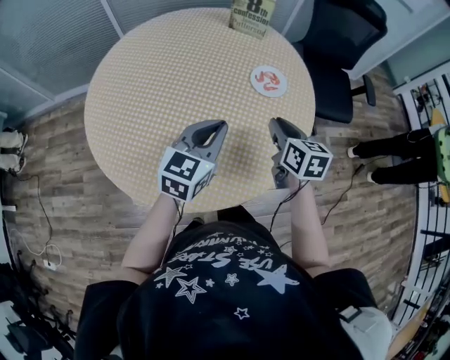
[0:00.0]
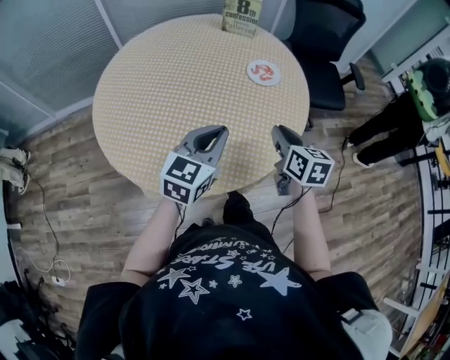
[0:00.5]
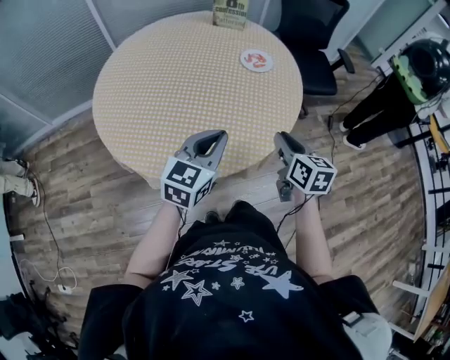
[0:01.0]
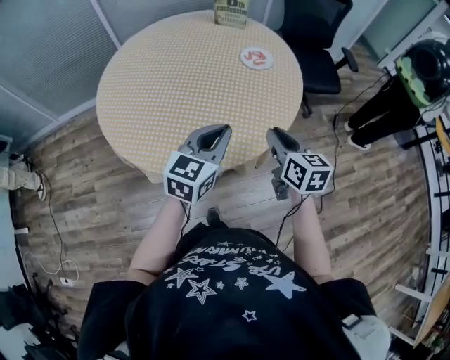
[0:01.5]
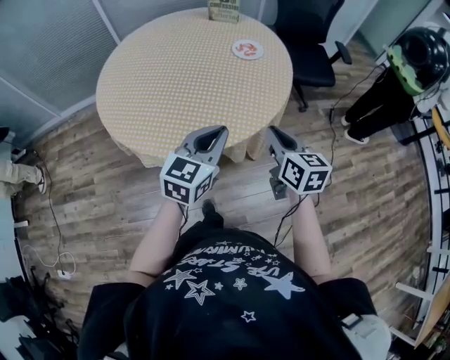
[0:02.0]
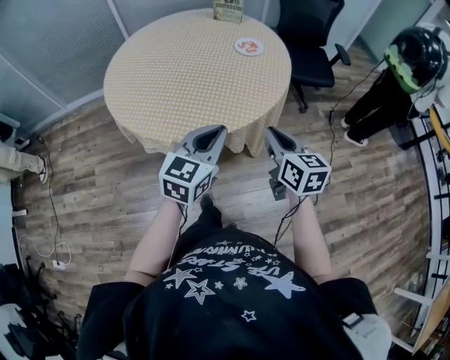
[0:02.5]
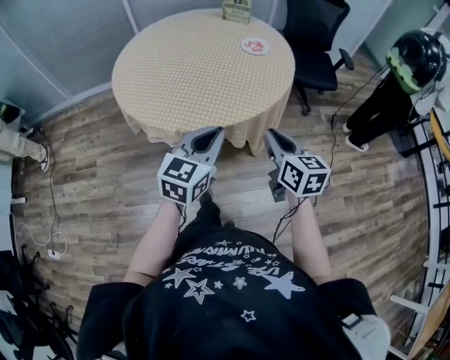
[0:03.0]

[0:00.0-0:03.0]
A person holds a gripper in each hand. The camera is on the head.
0:00.0 to 0:01.5: The grippers both shift backward by about 20 cm.
0:01.5 to 0:03.0: The two grippers go some 20 cm backward.

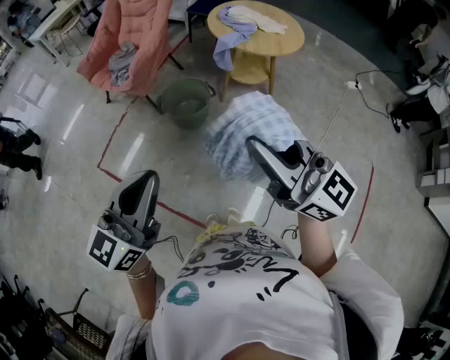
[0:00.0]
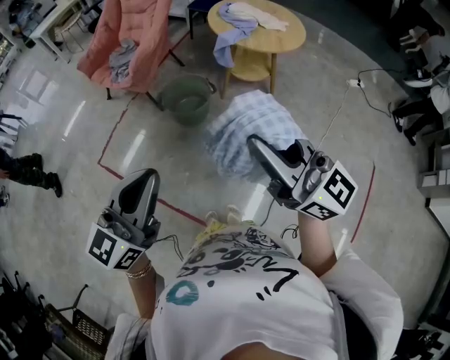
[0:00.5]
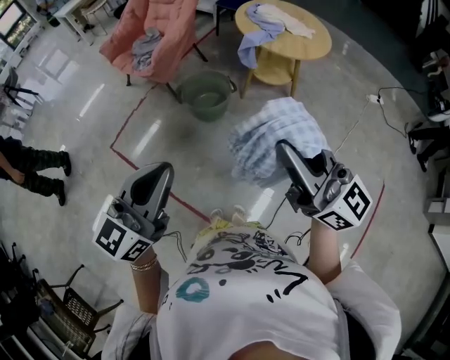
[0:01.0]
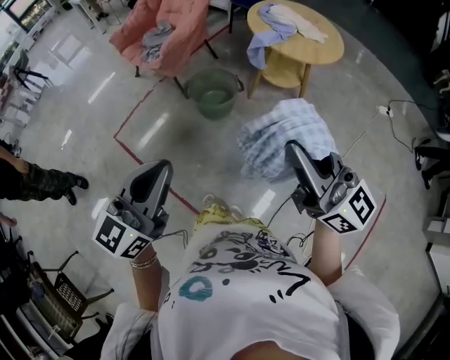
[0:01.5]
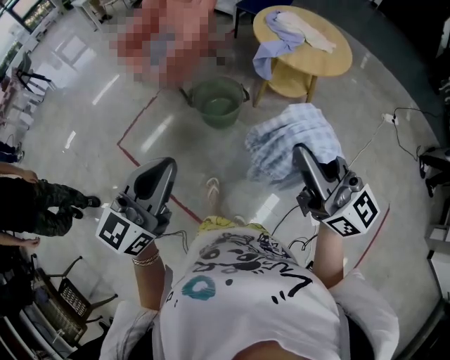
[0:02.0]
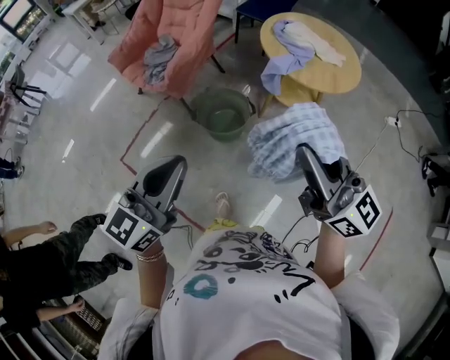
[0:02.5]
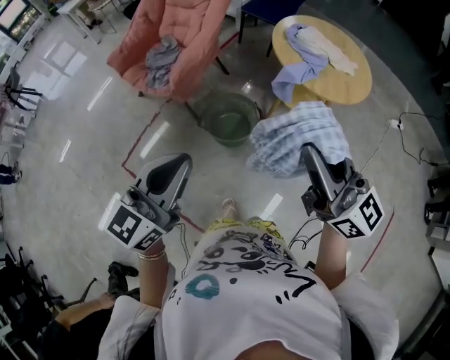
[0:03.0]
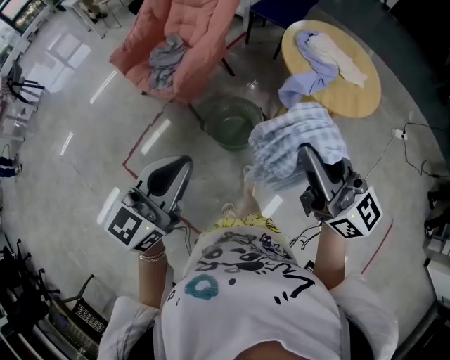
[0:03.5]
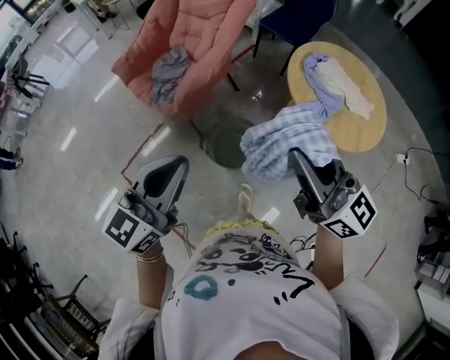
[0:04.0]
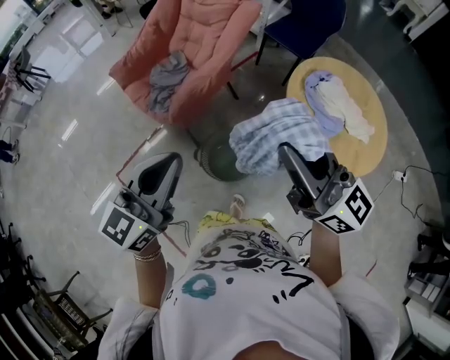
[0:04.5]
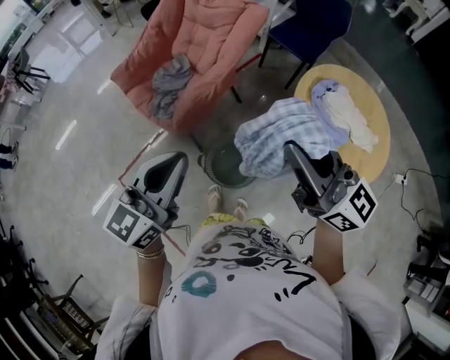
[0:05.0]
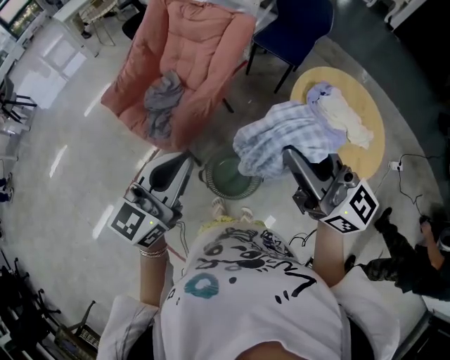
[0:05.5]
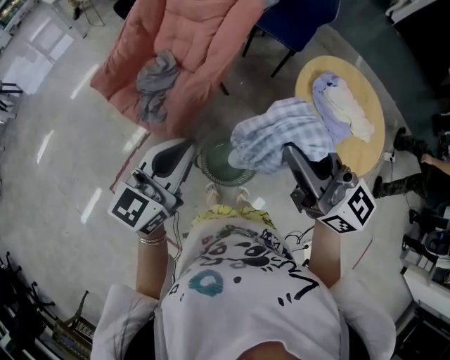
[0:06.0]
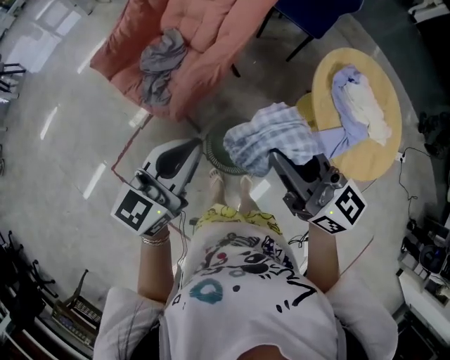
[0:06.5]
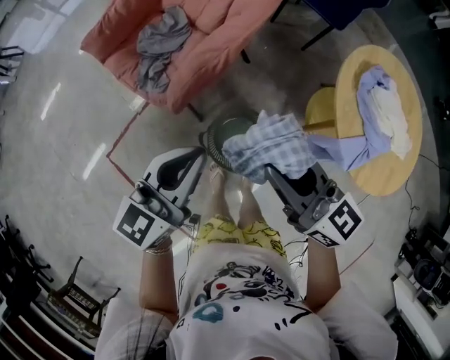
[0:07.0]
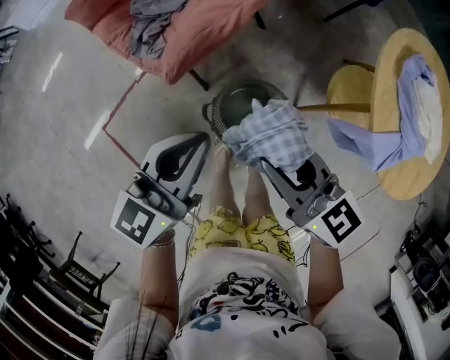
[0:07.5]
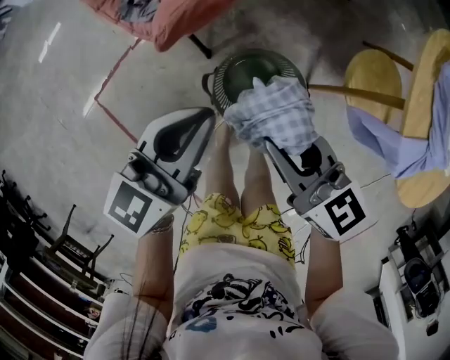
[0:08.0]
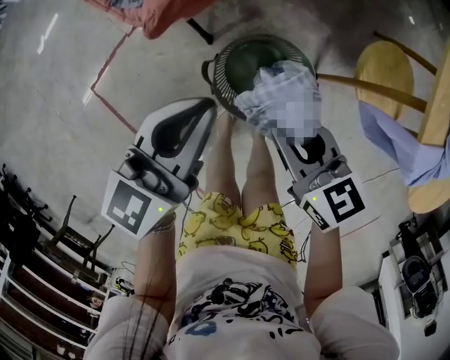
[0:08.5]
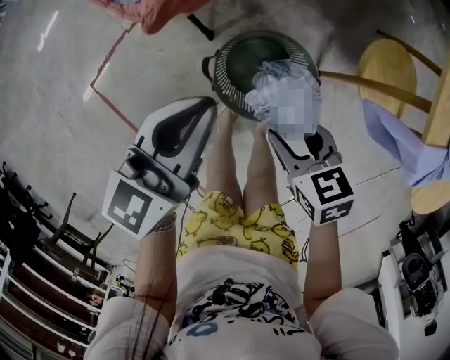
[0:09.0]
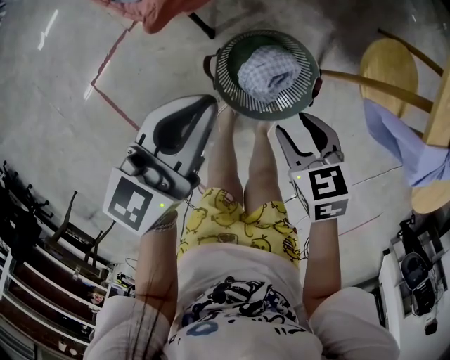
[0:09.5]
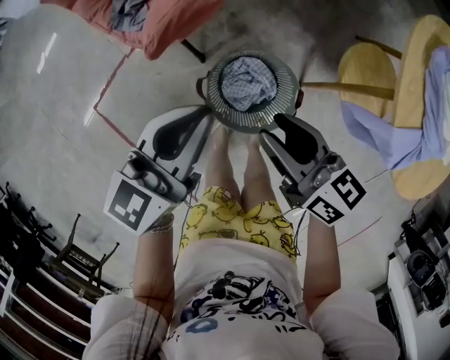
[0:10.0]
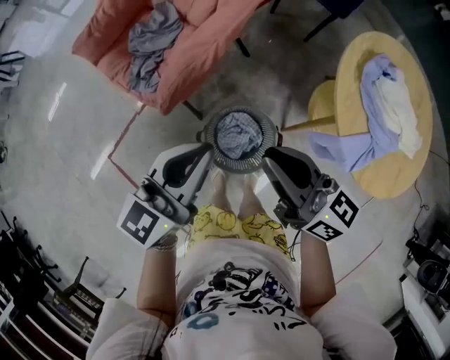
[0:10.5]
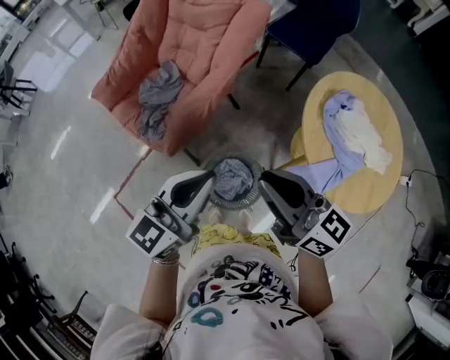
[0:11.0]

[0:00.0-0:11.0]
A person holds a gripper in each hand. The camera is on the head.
0:00.0 to 0:02.0: The left gripper travels forward by roughly 5 cm, while the right gripper shifts roughly 10 cm forward and to the right.
0:02.0 to 0:03.5: The right gripper is displaced forward and to the left by roughly 30 cm. The left gripper goes roughly 25 cm forward.
0:03.5 to 0:05.5: Both grippers move forward, approximately 30 cm.
0:05.5 to 0:07.5: The two grippers go approximately 30 cm downward. The right gripper changes its angle by about 30 degrees.
0:07.5 to 0:09.0: The left gripper travels downward by roughly 10 cm. Meanwhile the right gripper travels downward by some 20 cm, tilts its fingers roughly 30 degrees downward, and opens.
0:09.0 to 0:11.0: The grippers both shift upward by approximately 35 cm. The right gripper points its fingers about 50 degrees further upward, and closes. The left gripper swivels approximately 20 degrees.

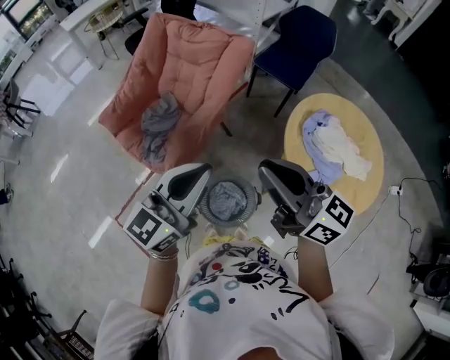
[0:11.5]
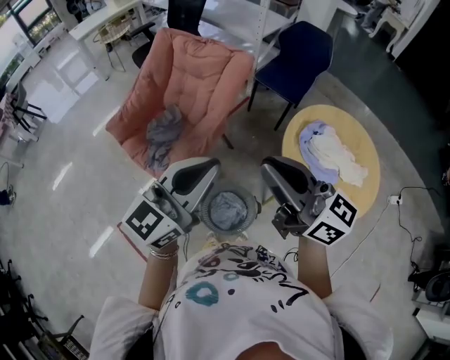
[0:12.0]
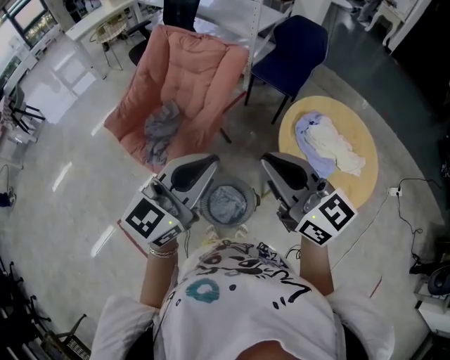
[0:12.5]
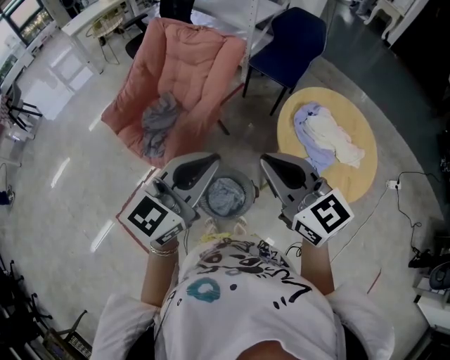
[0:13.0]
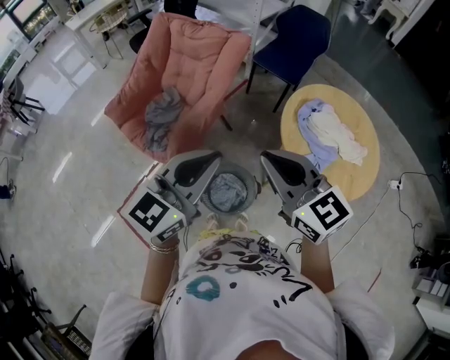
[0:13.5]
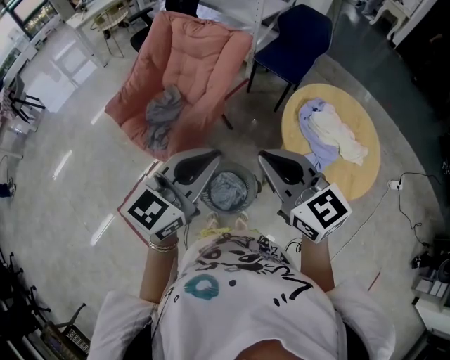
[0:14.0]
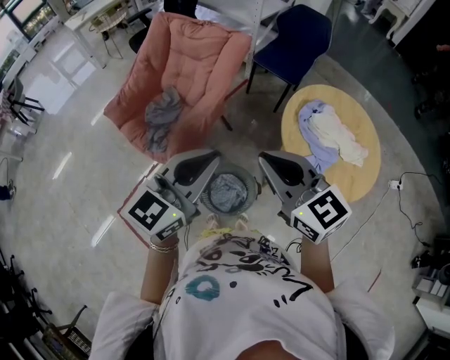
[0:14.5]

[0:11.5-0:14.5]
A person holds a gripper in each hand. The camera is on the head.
0:11.5 to 0:13.0: Both grippers move backward, about 5 cm. The right gripper swivels roughly 30 degrees.
0:13.0 to 0:14.5: There are only small adjustments of the grippers.

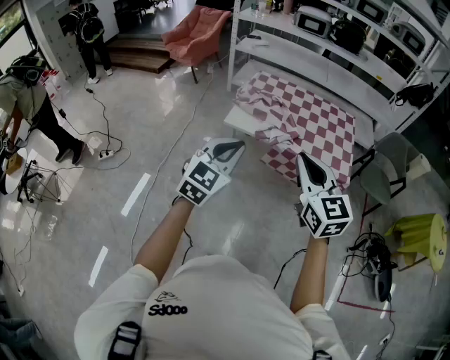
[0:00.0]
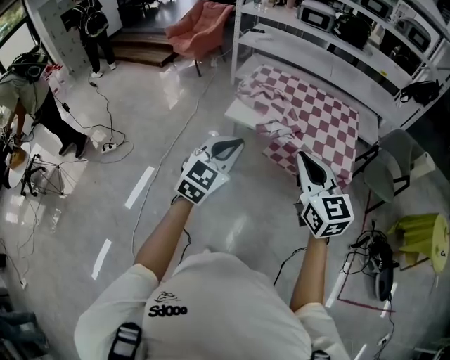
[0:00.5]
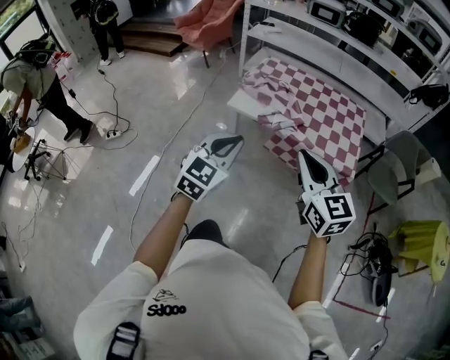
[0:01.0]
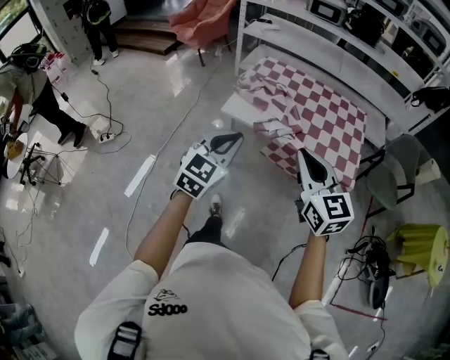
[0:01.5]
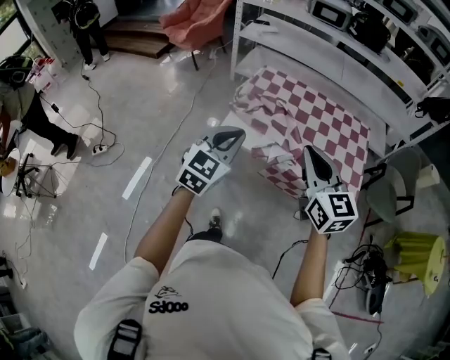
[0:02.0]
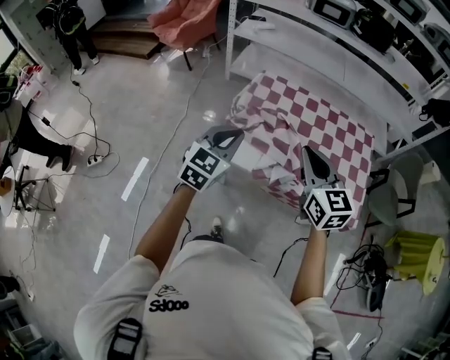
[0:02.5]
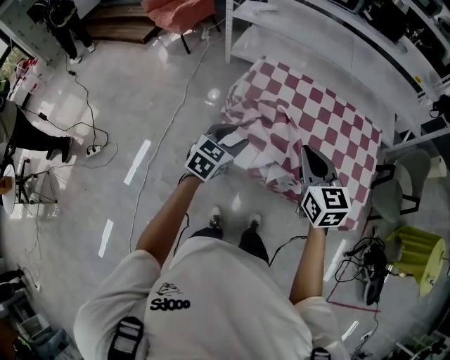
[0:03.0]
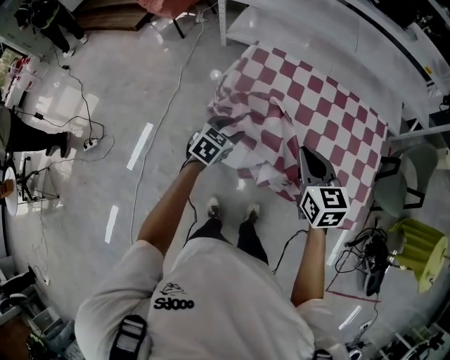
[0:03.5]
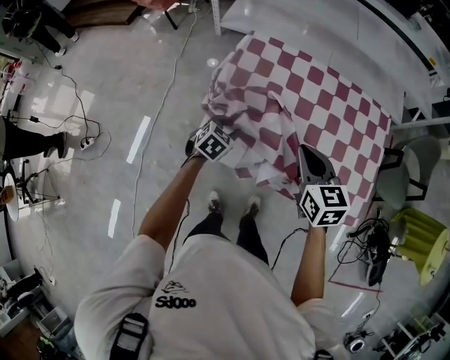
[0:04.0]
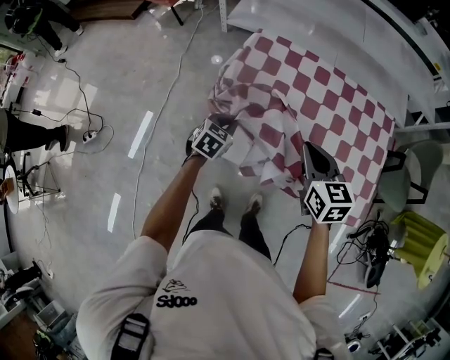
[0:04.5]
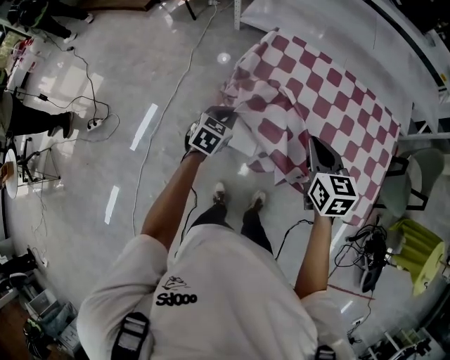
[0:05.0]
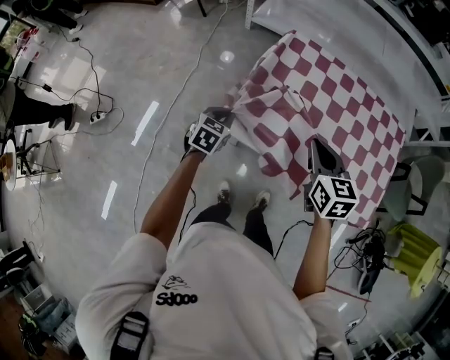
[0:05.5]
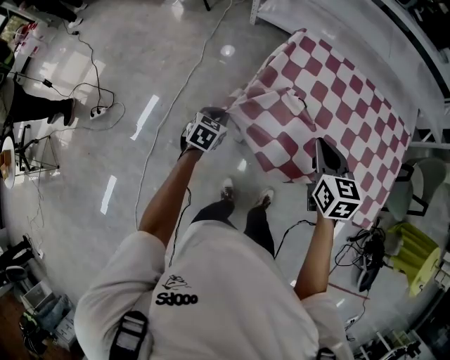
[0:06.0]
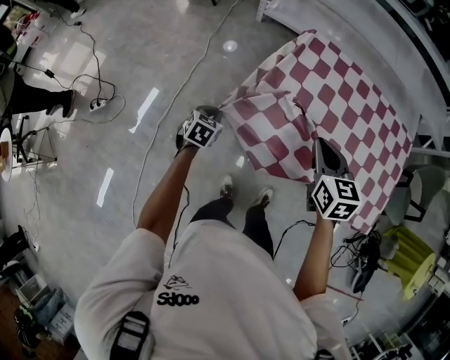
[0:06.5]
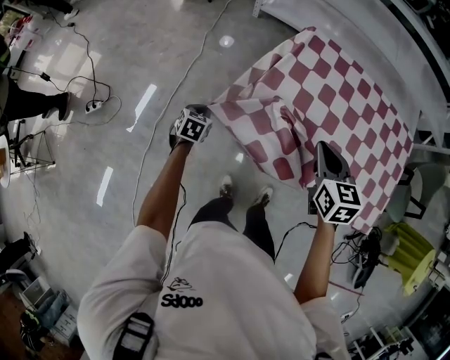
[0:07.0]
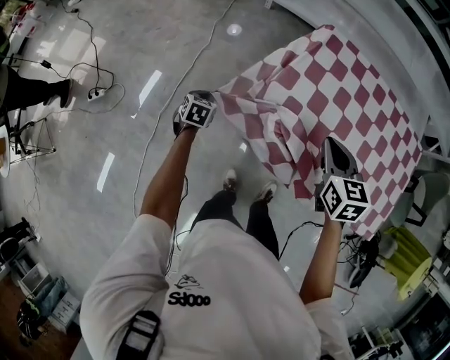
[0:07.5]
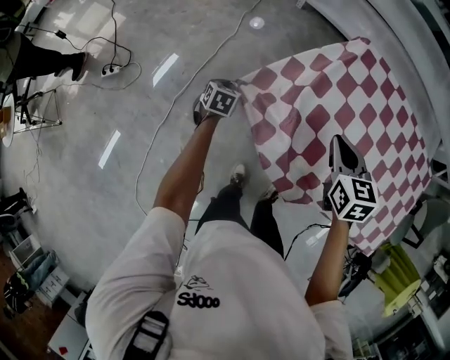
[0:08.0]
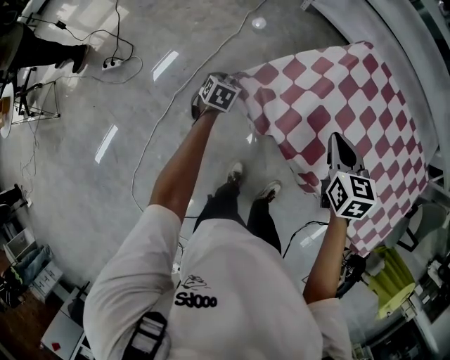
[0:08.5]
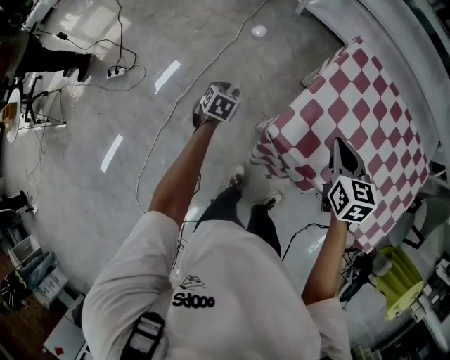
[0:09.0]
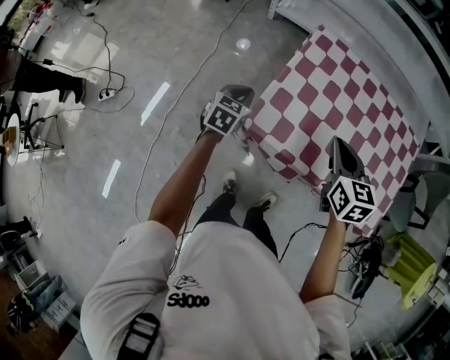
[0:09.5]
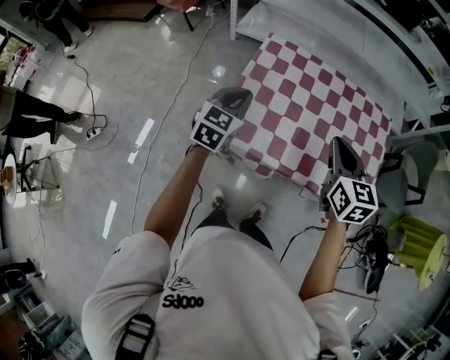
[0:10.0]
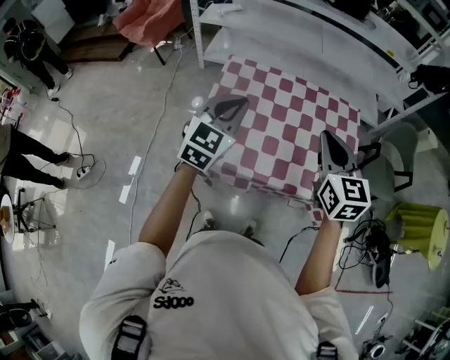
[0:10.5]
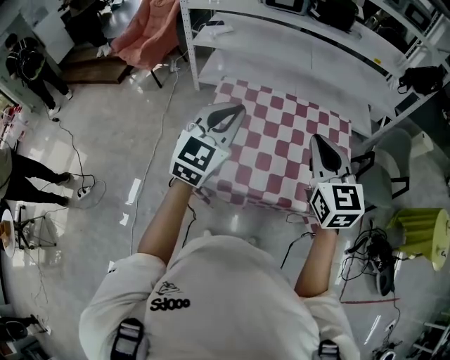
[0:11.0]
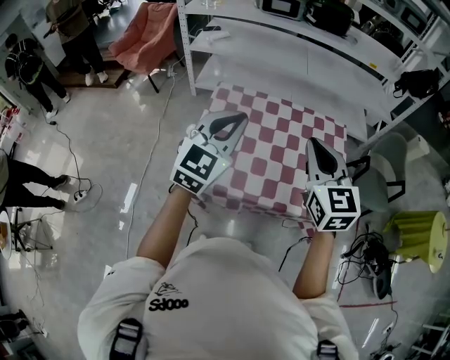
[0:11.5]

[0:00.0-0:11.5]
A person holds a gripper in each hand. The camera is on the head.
0:00.0 to 0:02.0: Both grippers travel together forward, some 25 cm.
0:02.0 to 0:04.0: The right gripper travels forward and downward by about 30 cm, and swivels approximately 30 degrees. The left gripper is displaced downward and forward by roughly 40 cm, tilts its fingers roughly 40 degrees downward, and opens its fingers.
0:04.0 to 0:06.0: The right gripper moves to the left, some 10 cm. Meanwhile the left gripper is displaced to the left by about 20 cm, turns by roughly 20 degrees, and closes.
0:06.0 to 0:07.5: The left gripper is displaced to the left, downward and forward by about 20 cm. The right gripper travels forward and downward by approximately 10 cm.
0:07.5 to 0:09.5: The left gripper moves upward and to the right, approximately 25 cm, turns by some 20 degrees, and opens and closes again. Meanwhile the right gripper moves to the right, backward and upward, some 10 cm.
0:09.5 to 0:11.5: The left gripper goes some 50 cm upward and to the right, and tips its fingers upward by some 30 degrees. Meanwhile the right gripper shifts about 30 cm upward and to the right, and turns by roughly 30 degrees.
